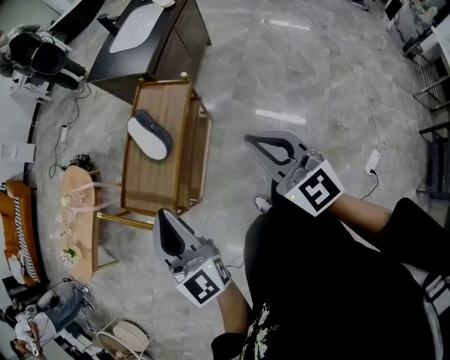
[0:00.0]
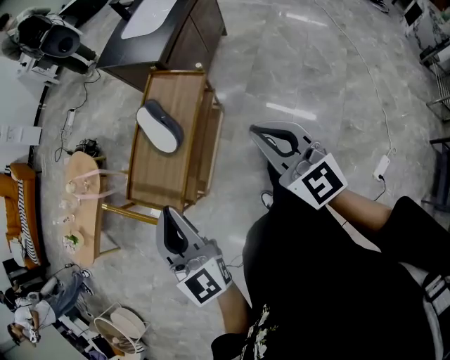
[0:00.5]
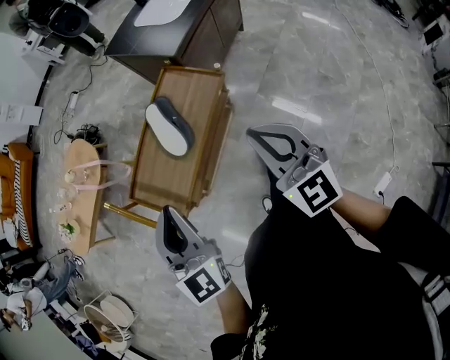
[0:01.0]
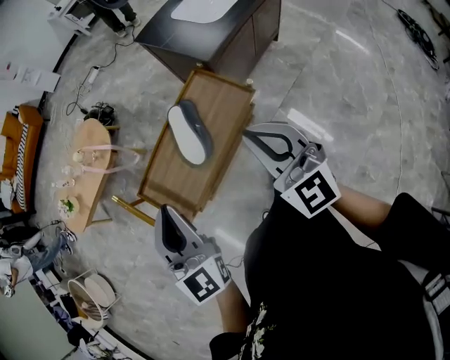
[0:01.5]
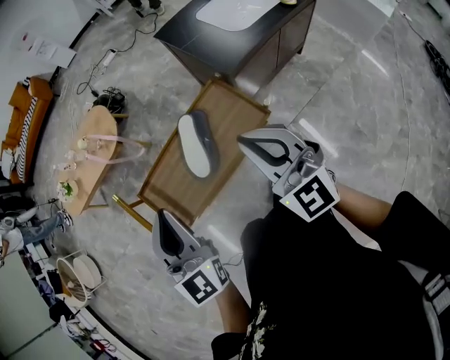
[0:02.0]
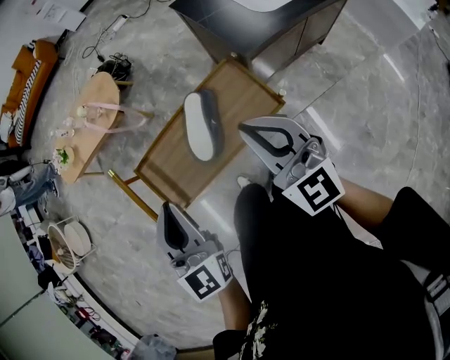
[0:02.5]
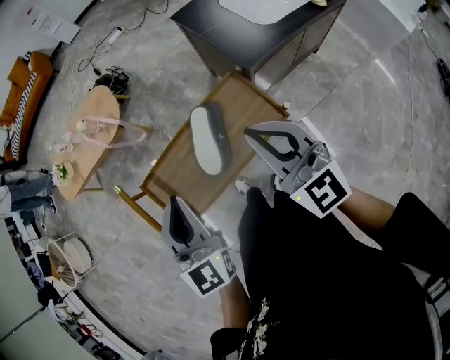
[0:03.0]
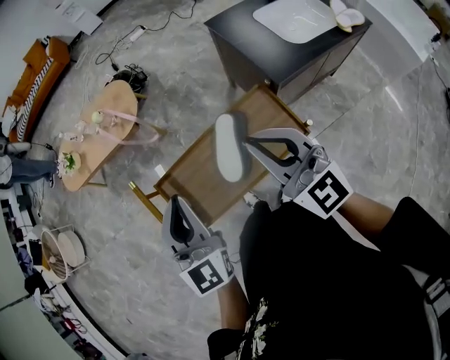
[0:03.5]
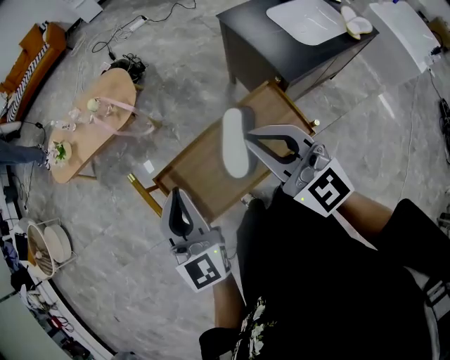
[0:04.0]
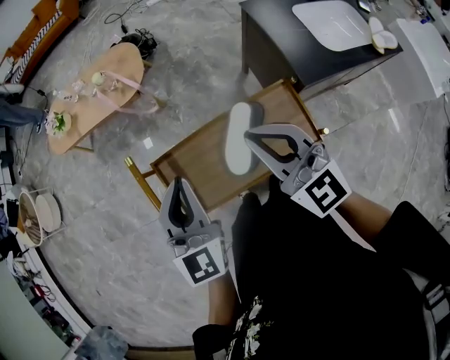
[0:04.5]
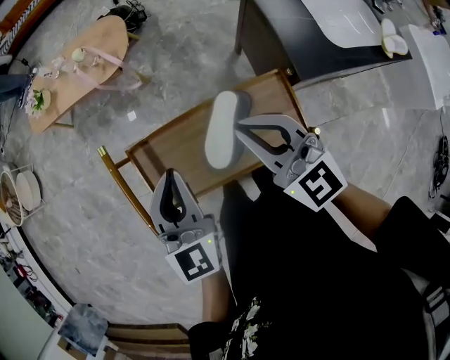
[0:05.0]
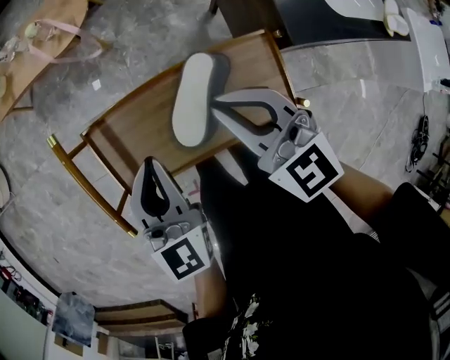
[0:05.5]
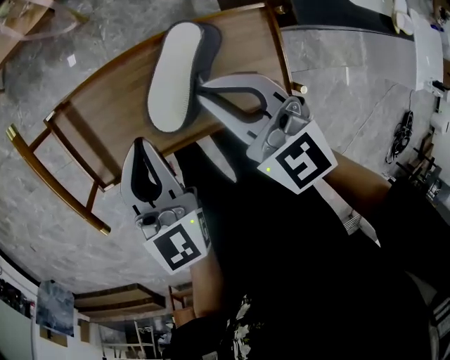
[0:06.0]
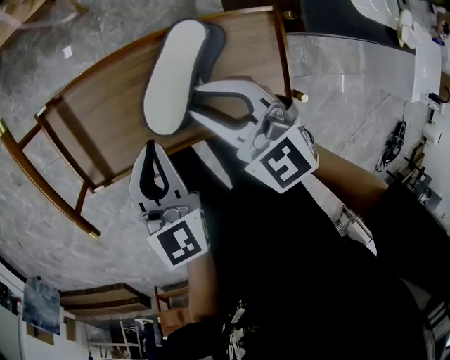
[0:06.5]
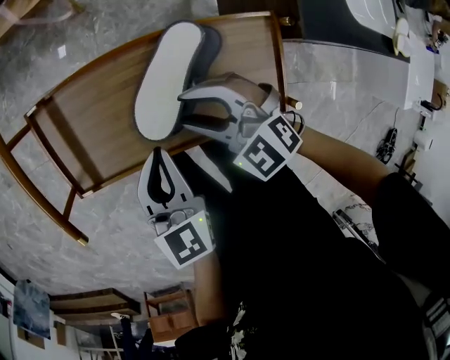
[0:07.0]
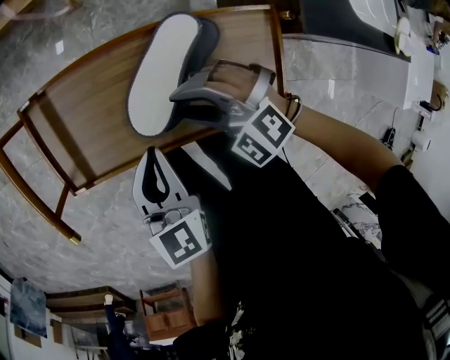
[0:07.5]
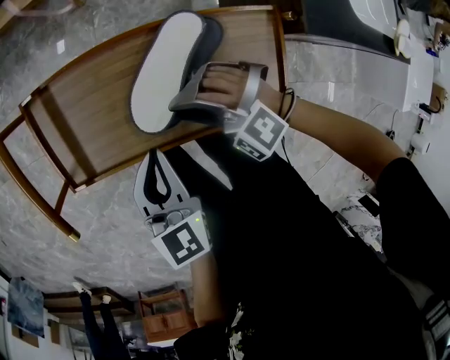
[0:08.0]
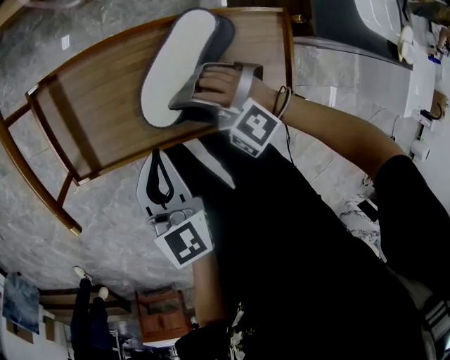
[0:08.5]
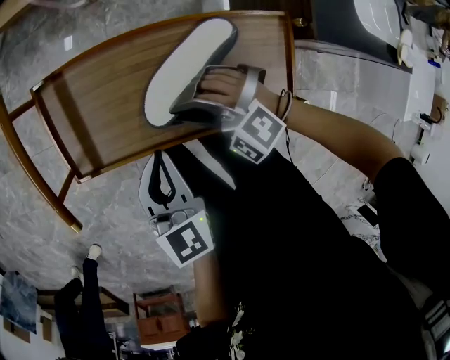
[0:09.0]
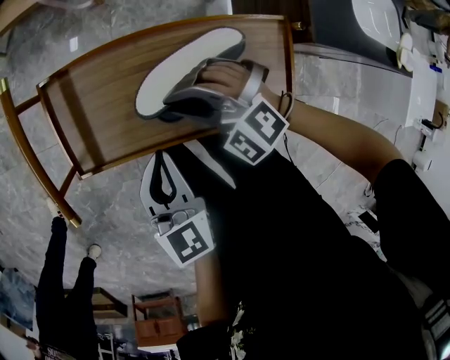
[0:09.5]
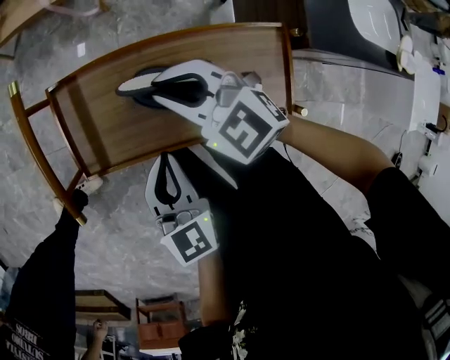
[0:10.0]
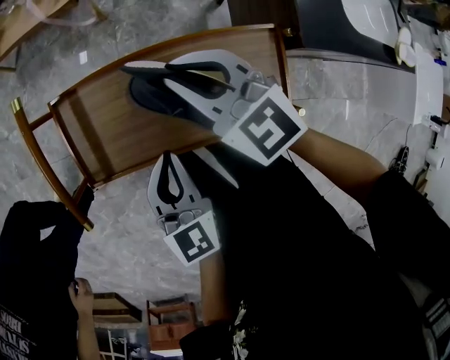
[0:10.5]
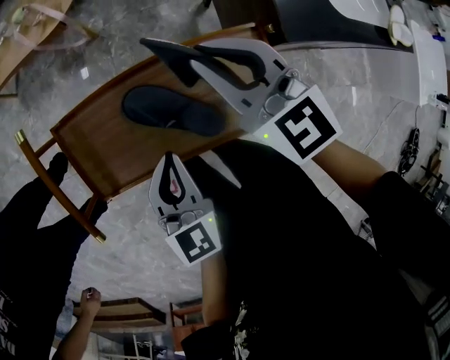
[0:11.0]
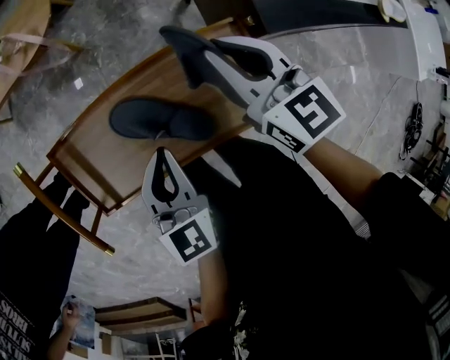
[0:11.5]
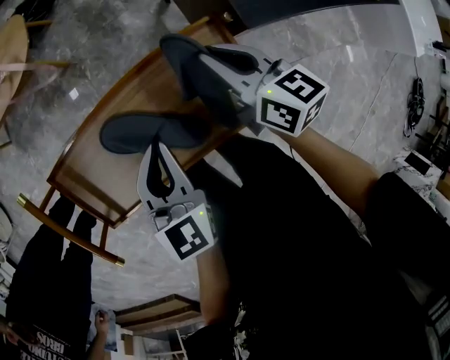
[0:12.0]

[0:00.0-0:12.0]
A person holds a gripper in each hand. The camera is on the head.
0:00.0 to 0:02.0: The left gripper moves approximately 20 cm, and swivels roughly 30 degrees, while the right gripper shifts by approximately 30 cm, and swivels roughly 40 degrees.
0:02.0 to 0:04.0: The two grippers go about 15 cm forward and to the left.
0:04.0 to 0:06.0: The left gripper moves downward and to the right, roughly 20 cm, and changes its angle by roughly 30 degrees, while the right gripper moves downward, approximately 20 cm, and swivels approximately 30 degrees.
0:06.0 to 0:08.0: The left gripper moves downward and backward, roughly 10 cm. The right gripper travels downward by roughly 15 cm, twists approximately 60 degrees counterclockwise, seen from behind, and opens its fingers.
0:08.0 to 0:10.0: The right gripper heads forward and upward, covering some 15 cm, rotates around the line of its fingers by roughly 40 degrees, clockwise from behind, and closes its fingers.
0:10.0 to 0:12.0: The left gripper moves approximately 15 cm, and turns by roughly 20 degrees, while the right gripper travels upward and back again, about 10 cm each way, and twists about 60 degrees clockwise, seen from behind.

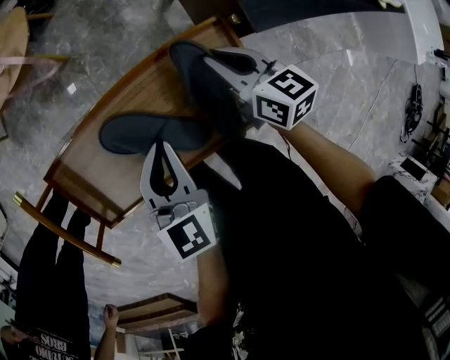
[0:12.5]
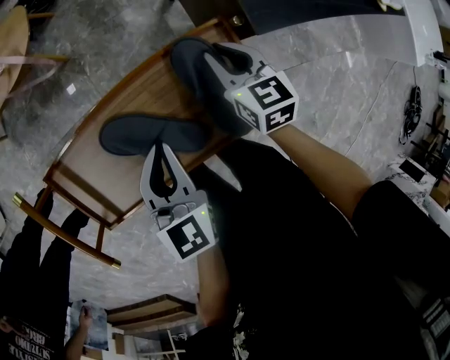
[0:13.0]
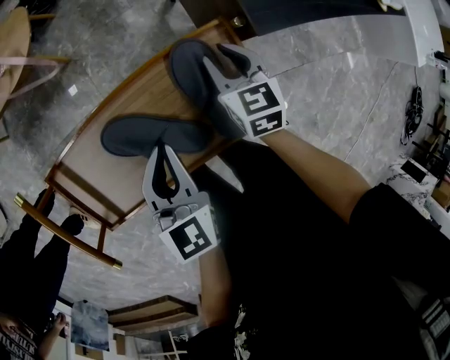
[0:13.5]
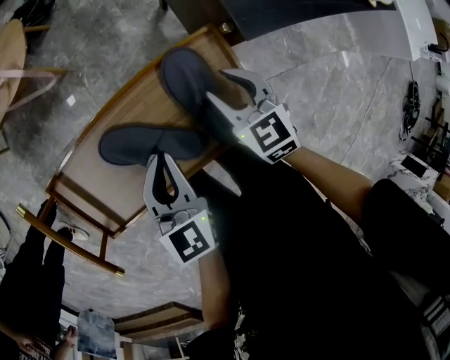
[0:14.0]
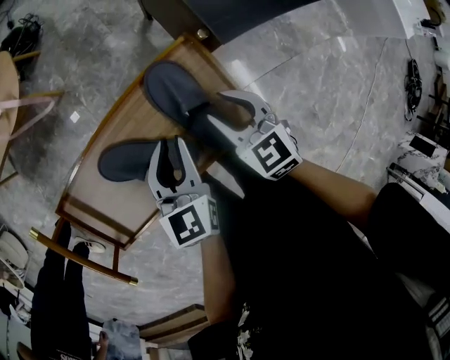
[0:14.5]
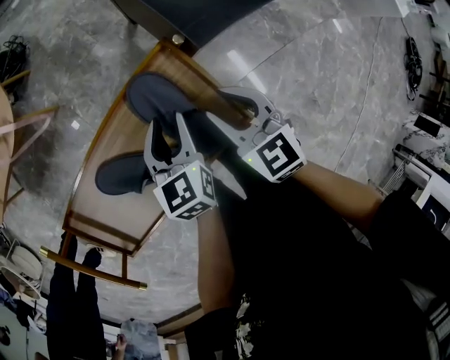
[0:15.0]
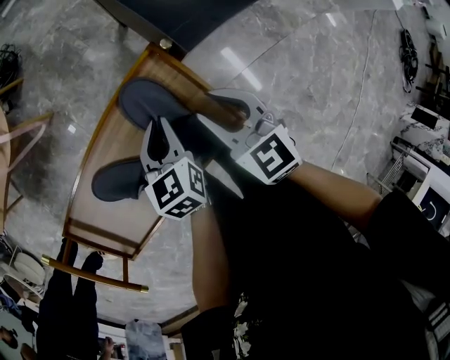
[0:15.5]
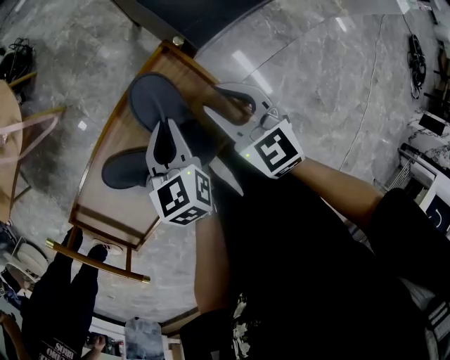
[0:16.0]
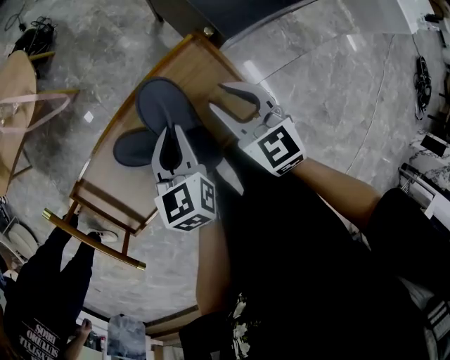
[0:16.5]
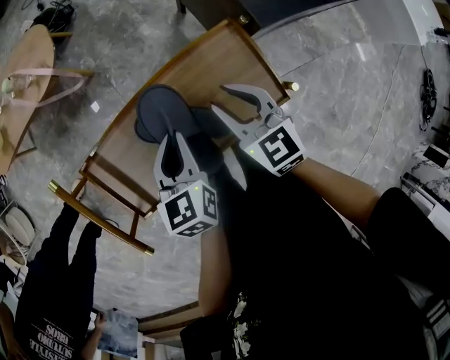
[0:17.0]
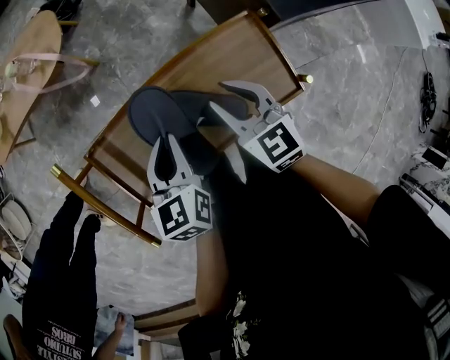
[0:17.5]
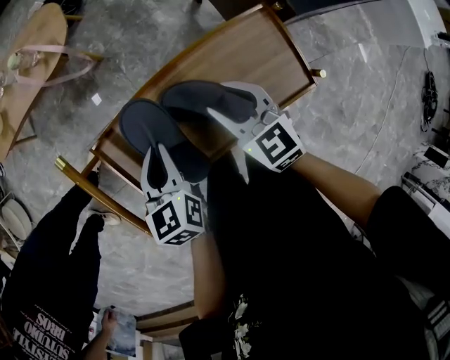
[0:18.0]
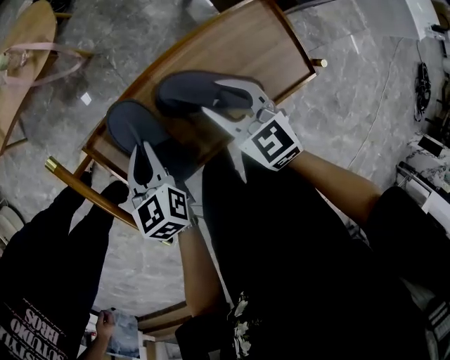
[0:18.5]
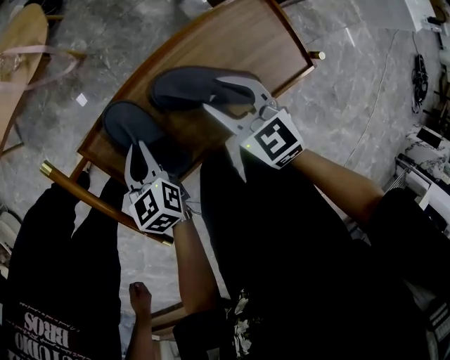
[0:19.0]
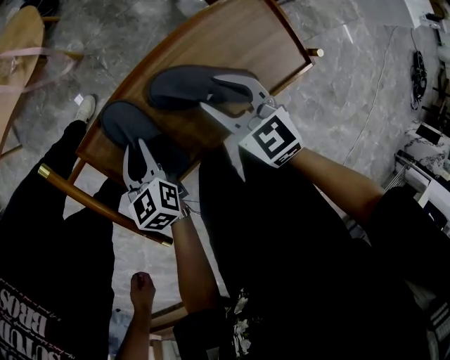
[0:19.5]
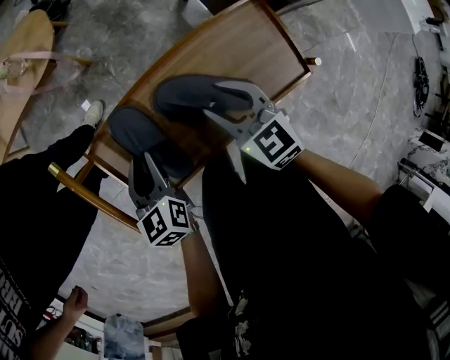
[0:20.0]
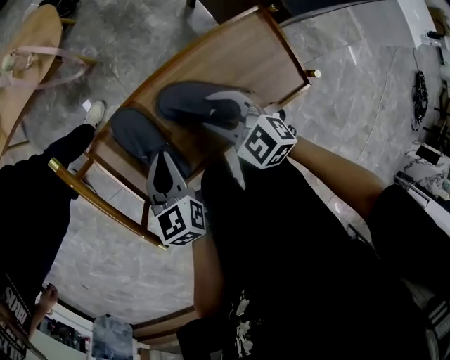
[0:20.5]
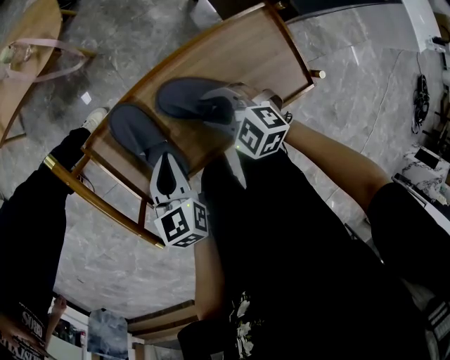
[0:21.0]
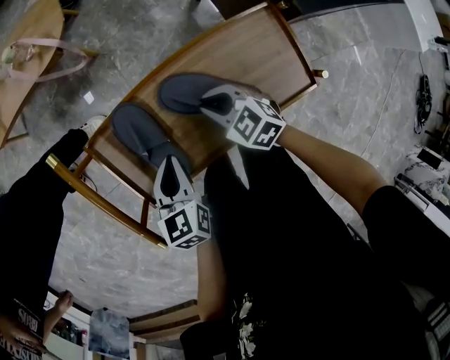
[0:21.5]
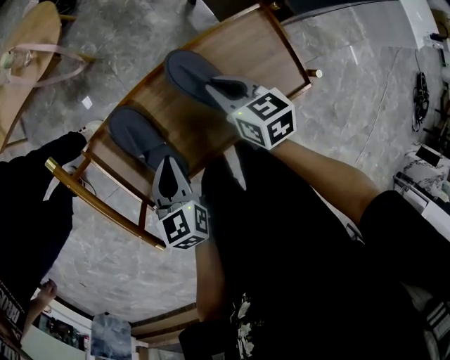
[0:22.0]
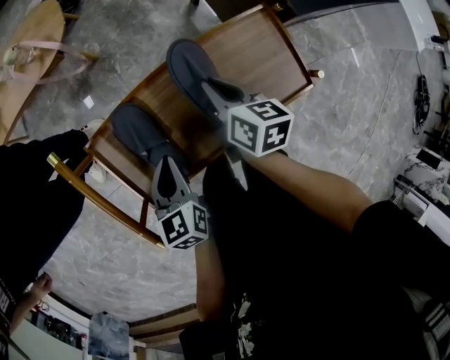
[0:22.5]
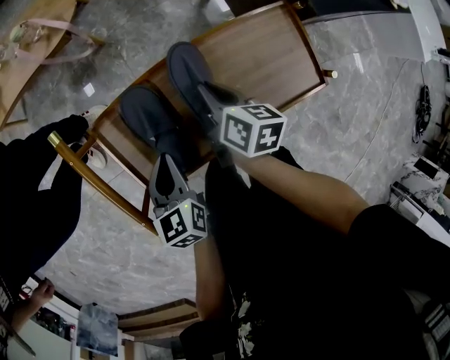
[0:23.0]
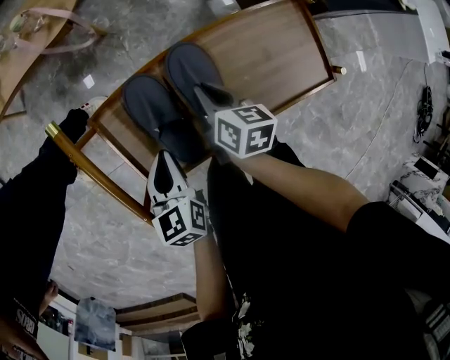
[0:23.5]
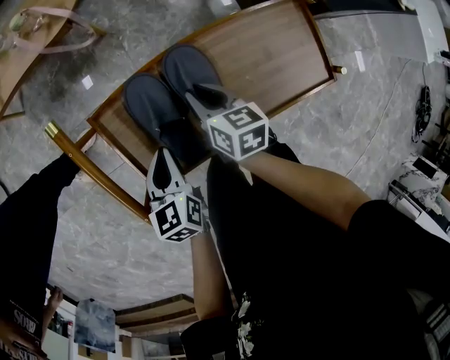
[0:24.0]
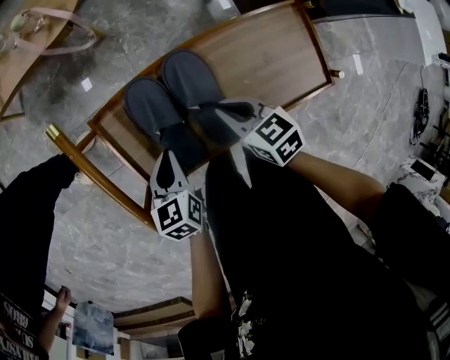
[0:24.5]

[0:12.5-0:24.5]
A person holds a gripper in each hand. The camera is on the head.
0:12.5 to 0:14.5: The right gripper travels backward by some 10 cm, swivels about 30 degrees, and opens its fingers. Meanwhile the left gripper moves to the right, about 5 cm.
0:14.5 to 0:16.5: The left gripper moves about 5 cm downward and comes back; the right gripper shifts roughly 5 cm upward.
0:16.5 to 0:18.5: Both grippers move to the left, roughly 25 cm.
0:18.5 to 0:20.5: The left gripper moves about 5 cm, while the right gripper changes its angle by some 30 degrees.
0:20.5 to 0:22.5: The right gripper moves forward and to the right, about 5 cm, rotates around the line of its fingers by about 60 degrees, clockwise from behind, and closes.
0:22.5 to 0:24.5: The right gripper travels to the left and backward by about 10 cm, and rotates about 40 degrees. Meanwhile the left gripper travels to the left and downward by approximately 10 cm.

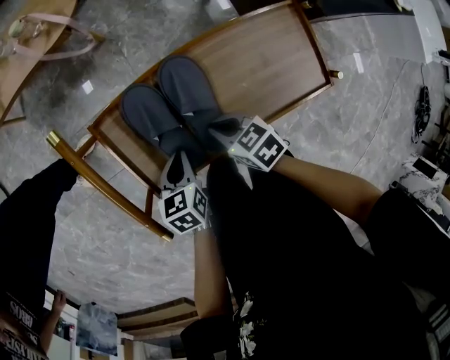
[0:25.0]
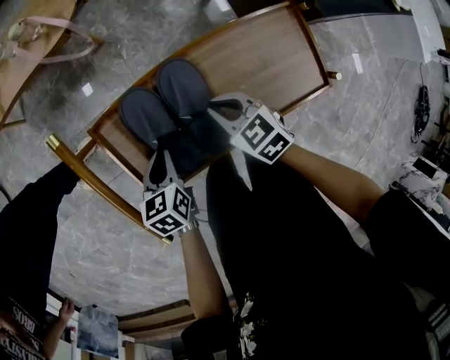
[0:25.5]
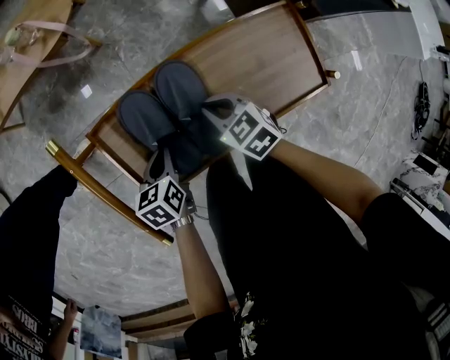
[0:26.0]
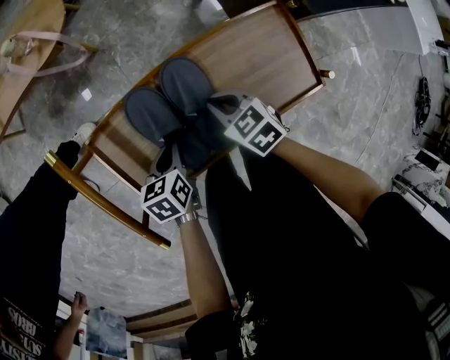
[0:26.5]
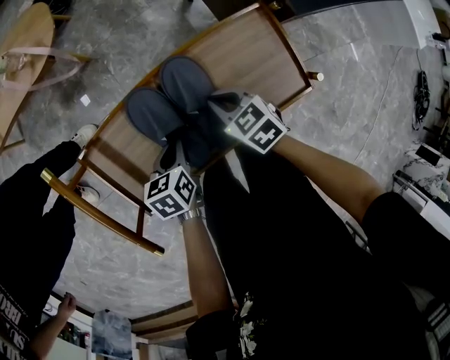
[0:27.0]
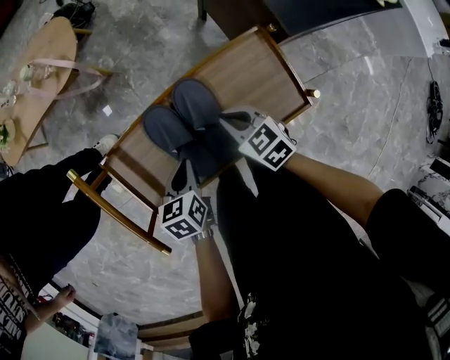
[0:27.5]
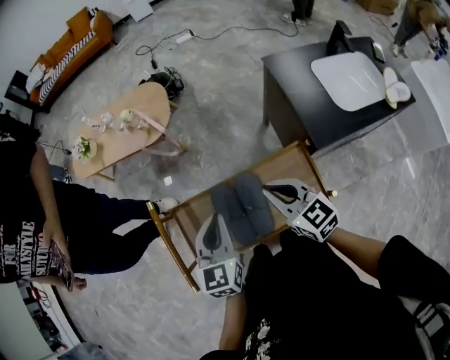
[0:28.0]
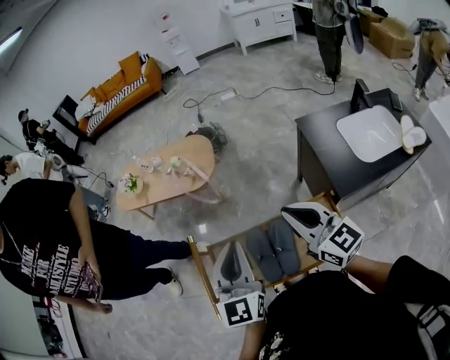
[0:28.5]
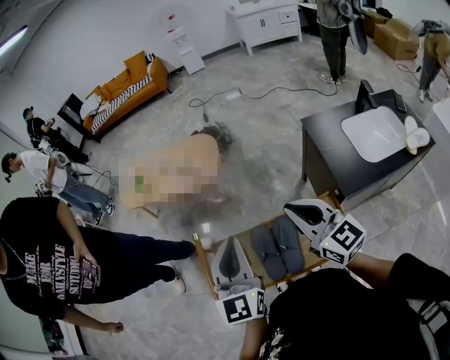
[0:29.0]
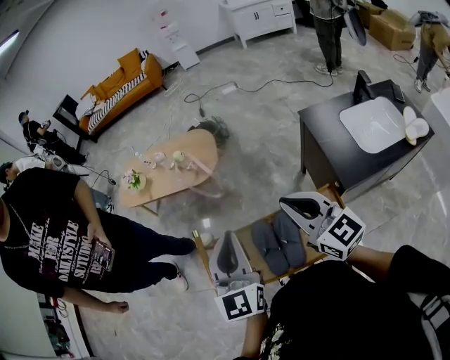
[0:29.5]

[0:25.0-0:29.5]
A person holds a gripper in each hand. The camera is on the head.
0:25.0 to 0:27.0: The left gripper shifts roughly 10 cm to the right. The right gripper shifts some 15 cm to the right and forward.
0:27.0 to 0:29.5: Both grippers move upward, some 40 cm. The left gripper points its fingers approximately 50 degrees further upward. Meanwhile the right gripper tips its fingers upward by roughly 50 degrees.
